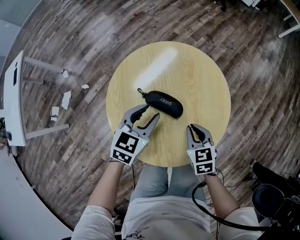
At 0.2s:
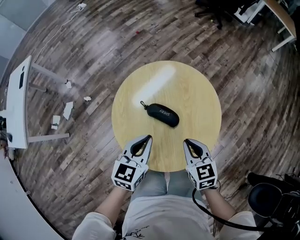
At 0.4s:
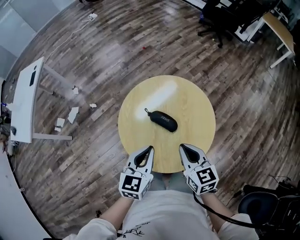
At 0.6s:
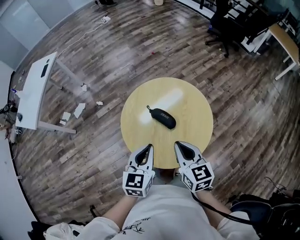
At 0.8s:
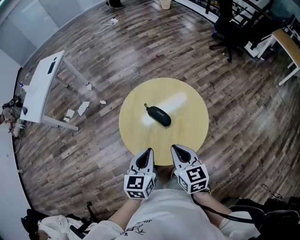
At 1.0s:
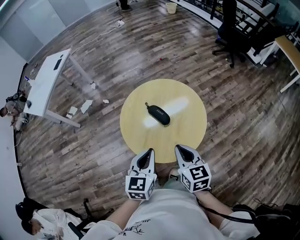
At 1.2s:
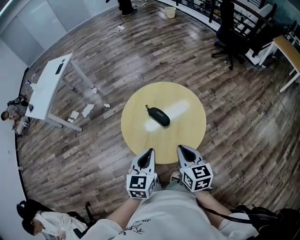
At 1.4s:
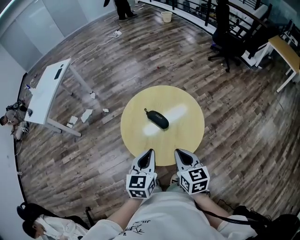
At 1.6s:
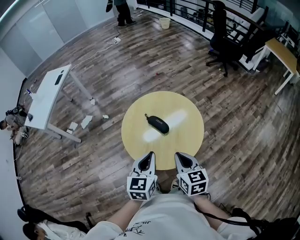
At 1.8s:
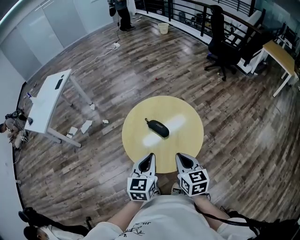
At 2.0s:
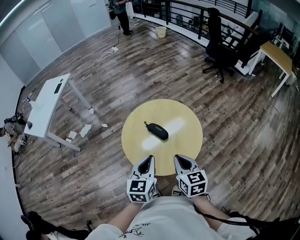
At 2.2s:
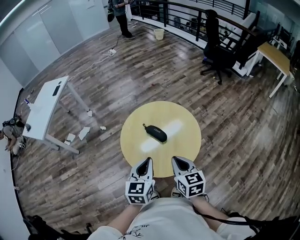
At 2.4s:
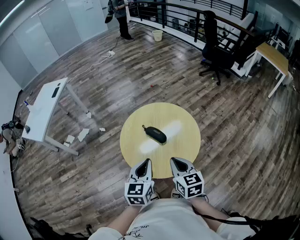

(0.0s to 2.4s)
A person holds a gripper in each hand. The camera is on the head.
0.0s - 1.2s: The left gripper moves about 30 cm, changes its angle by roughly 40 degrees, and closes up. Meanwhile the right gripper is displaced upward by some 25 cm, and turns by roughly 30 degrees.
1.2s - 2.4s: The grippers make only small movements.

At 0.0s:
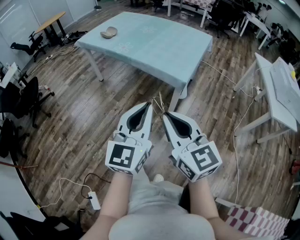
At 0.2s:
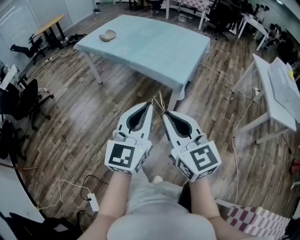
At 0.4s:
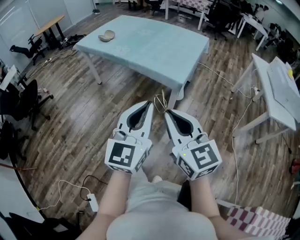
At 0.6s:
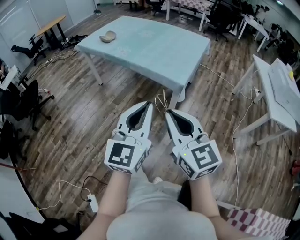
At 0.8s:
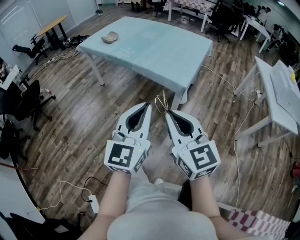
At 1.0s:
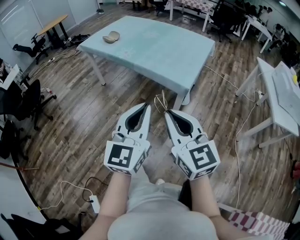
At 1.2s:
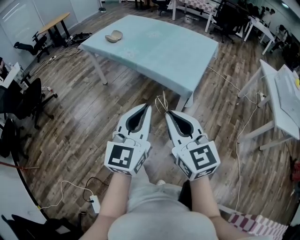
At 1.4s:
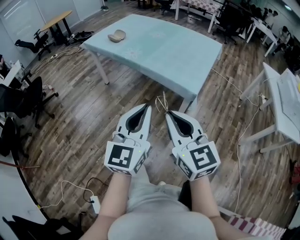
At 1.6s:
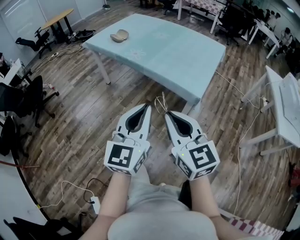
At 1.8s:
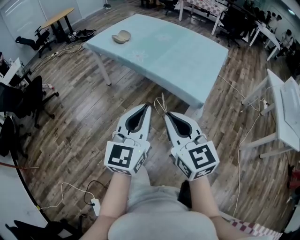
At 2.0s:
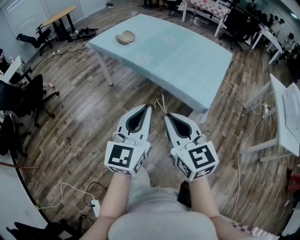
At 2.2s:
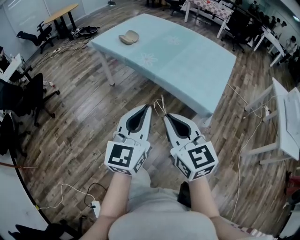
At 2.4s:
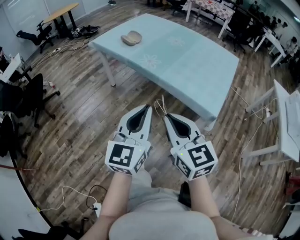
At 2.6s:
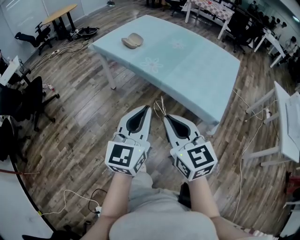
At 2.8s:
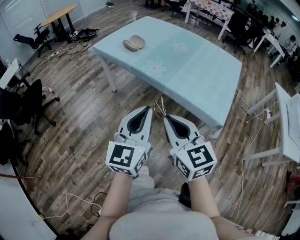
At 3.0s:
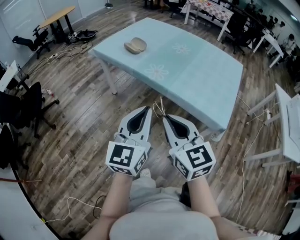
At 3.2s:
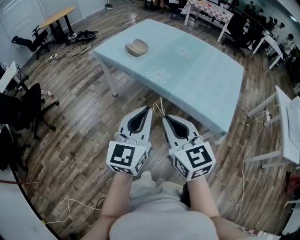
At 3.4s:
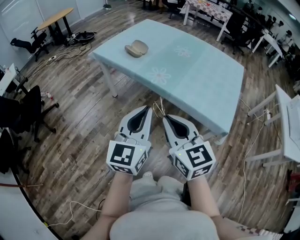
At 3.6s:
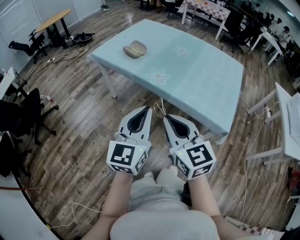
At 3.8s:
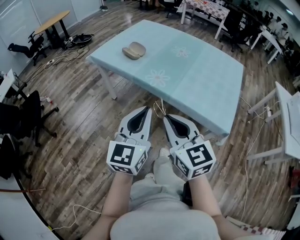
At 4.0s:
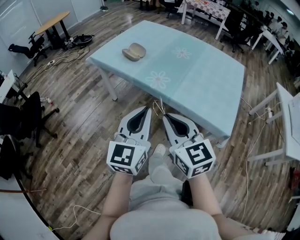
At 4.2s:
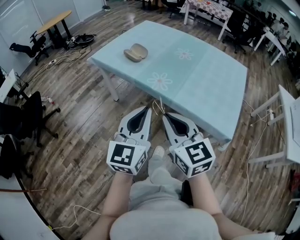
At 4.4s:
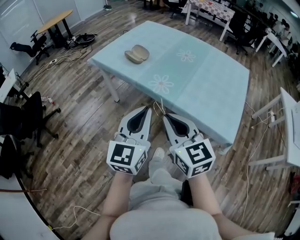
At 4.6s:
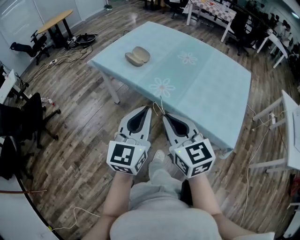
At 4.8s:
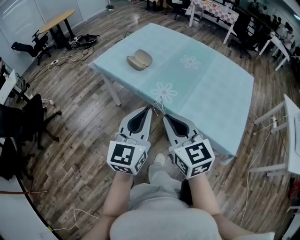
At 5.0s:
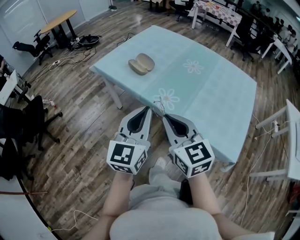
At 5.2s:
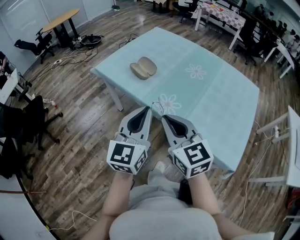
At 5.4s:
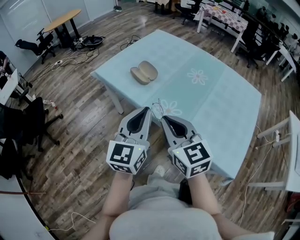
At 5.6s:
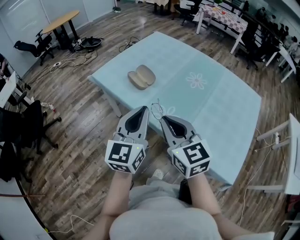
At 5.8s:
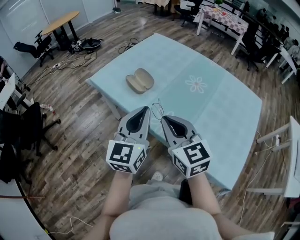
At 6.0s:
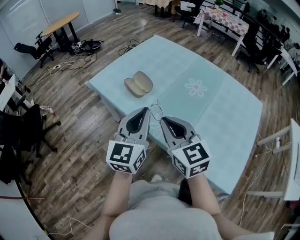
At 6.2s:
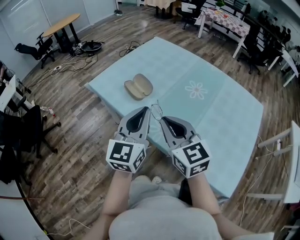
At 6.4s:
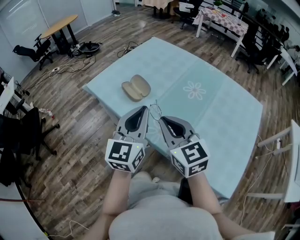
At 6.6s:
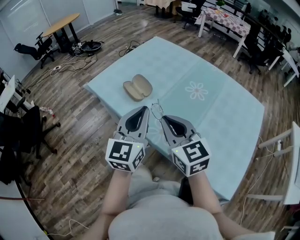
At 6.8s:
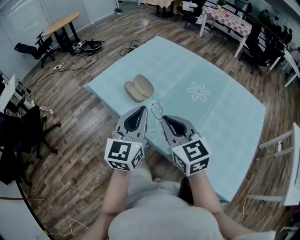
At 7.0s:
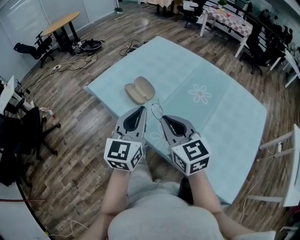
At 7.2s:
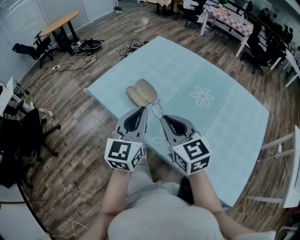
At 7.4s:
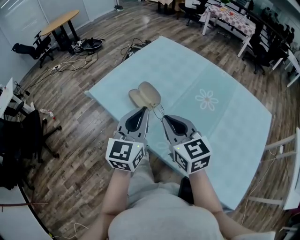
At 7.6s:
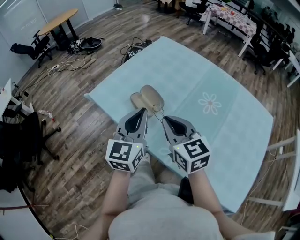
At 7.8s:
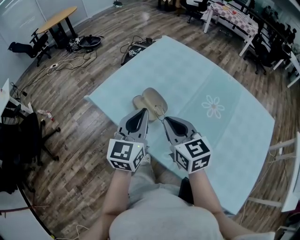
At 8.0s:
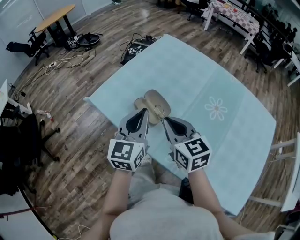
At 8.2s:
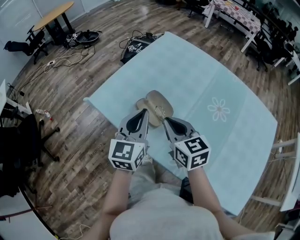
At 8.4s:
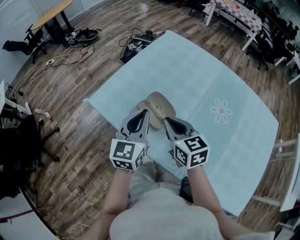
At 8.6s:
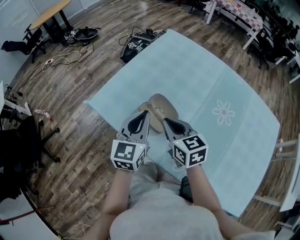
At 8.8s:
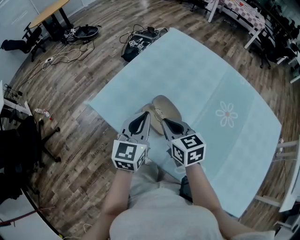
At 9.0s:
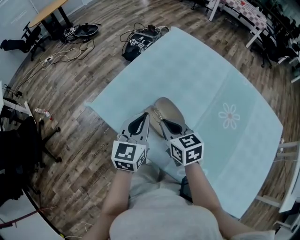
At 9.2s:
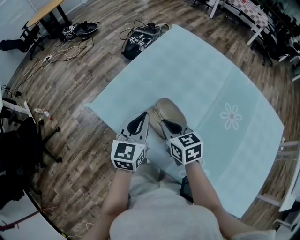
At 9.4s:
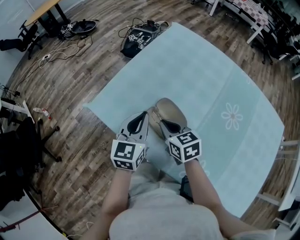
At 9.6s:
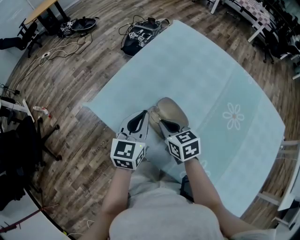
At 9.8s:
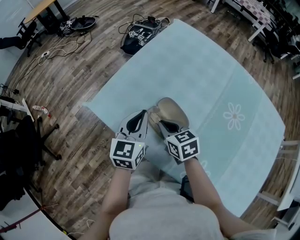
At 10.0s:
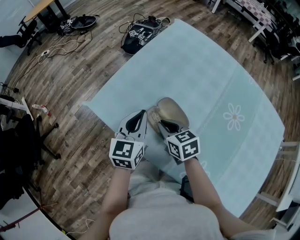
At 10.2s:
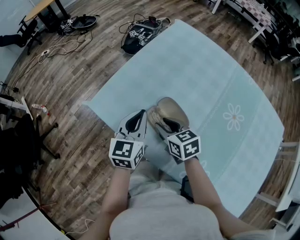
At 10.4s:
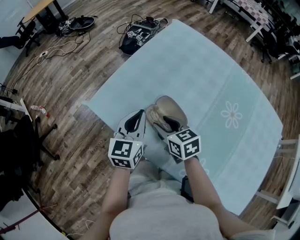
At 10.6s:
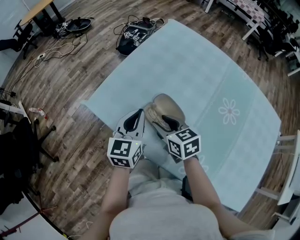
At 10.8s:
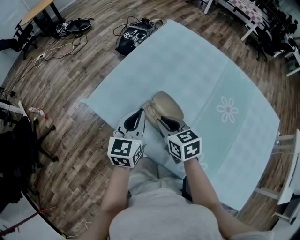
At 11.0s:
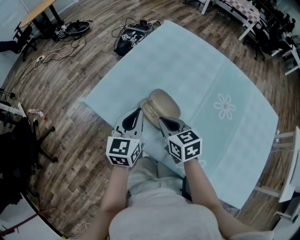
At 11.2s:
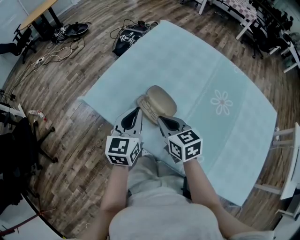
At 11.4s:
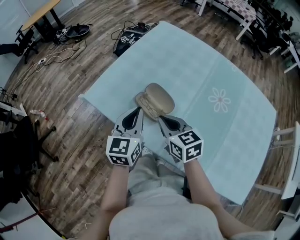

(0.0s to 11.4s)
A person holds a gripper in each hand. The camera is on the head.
0.0s - 1.4s: Both grippers move forward, roughly 5 cm.
1.4s - 2.8s: The two grippers go roughly 25 cm forward and to the left.
2.8s - 4.2s: The grippers both shift forward by about 10 cm.
4.2s - 5.6s: The grippers both shift forward by roughly 20 cm.
5.6s - 7.2s: The grippers both shift forward by roughly 15 cm.
7.2s - 8.6s: The right gripper is displaced forward and downward by about 20 cm, while the left gripper moves forward, downward and to the left, about 20 cm.
8.6s - 10.0s: The right gripper moves downward, roughly 10 cm. The left gripper shifts some 10 cm downward and forward.
10.0s - 11.4s: The left gripper goes about 10 cm backward; the right gripper shifts some 10 cm upward and backward, and opens and closes again.

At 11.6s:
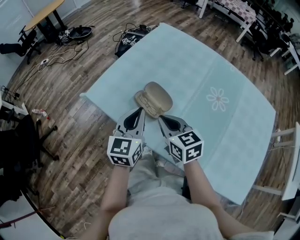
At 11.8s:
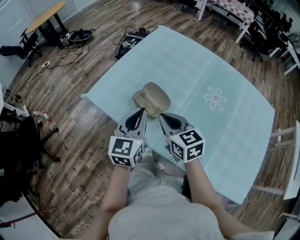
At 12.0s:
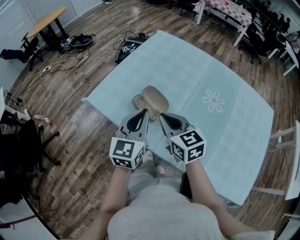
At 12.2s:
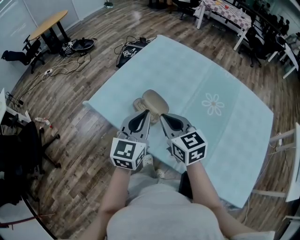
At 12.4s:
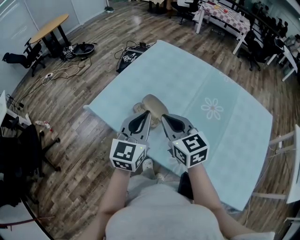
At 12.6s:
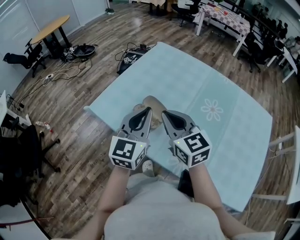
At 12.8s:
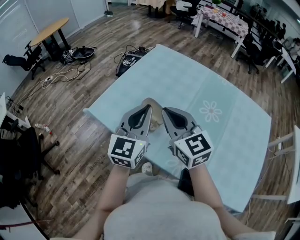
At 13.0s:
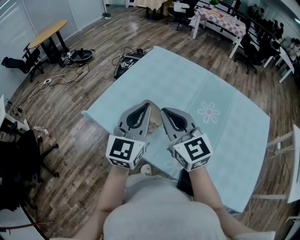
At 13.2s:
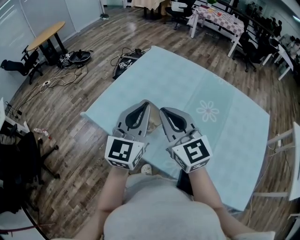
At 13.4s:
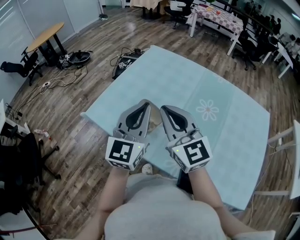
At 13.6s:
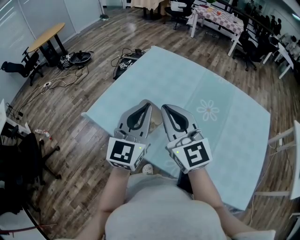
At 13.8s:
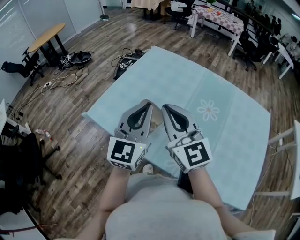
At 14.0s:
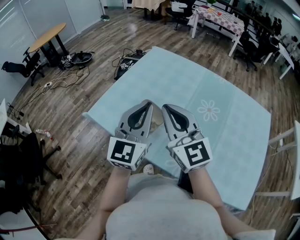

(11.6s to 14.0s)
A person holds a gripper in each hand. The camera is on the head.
11.6s - 12.8s: Both grippers move upward, approximately 10 cm. The right gripper turns by about 20 degrees.
12.8s - 14.0s: The grippers move only a little.

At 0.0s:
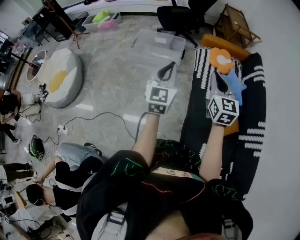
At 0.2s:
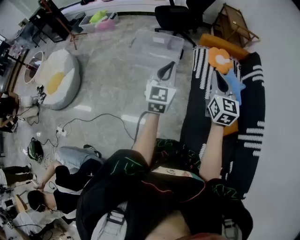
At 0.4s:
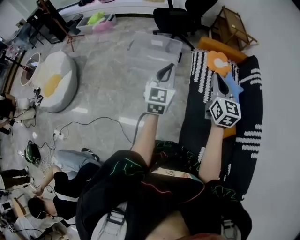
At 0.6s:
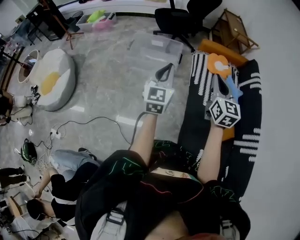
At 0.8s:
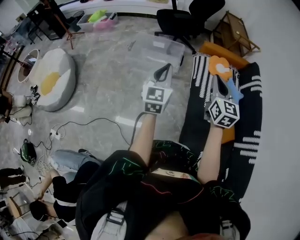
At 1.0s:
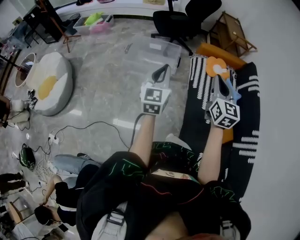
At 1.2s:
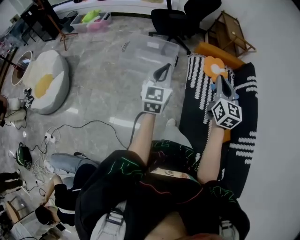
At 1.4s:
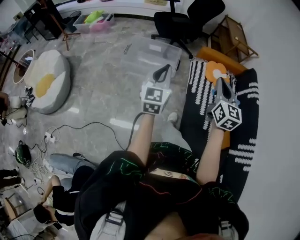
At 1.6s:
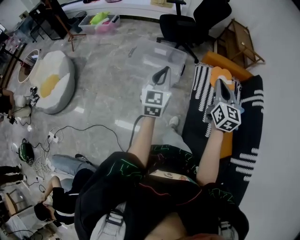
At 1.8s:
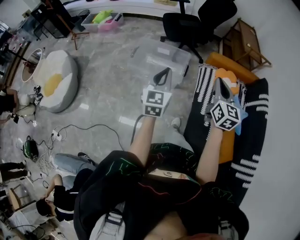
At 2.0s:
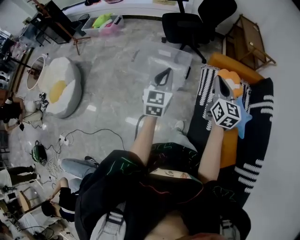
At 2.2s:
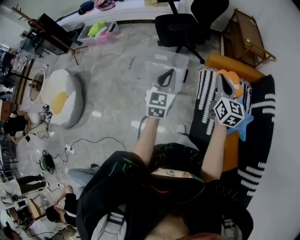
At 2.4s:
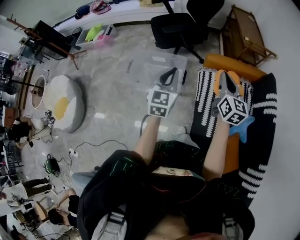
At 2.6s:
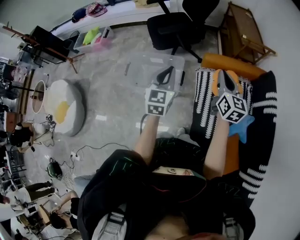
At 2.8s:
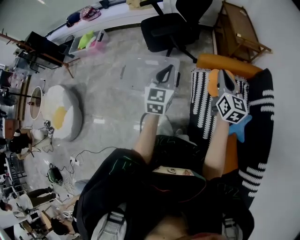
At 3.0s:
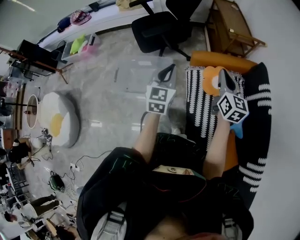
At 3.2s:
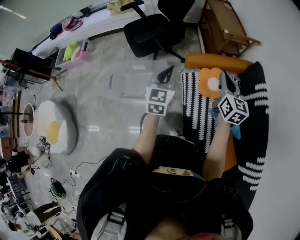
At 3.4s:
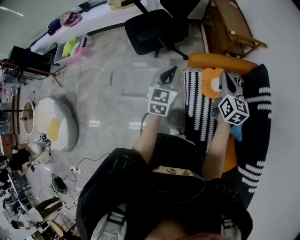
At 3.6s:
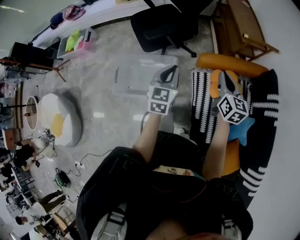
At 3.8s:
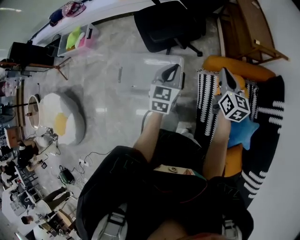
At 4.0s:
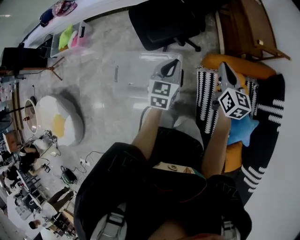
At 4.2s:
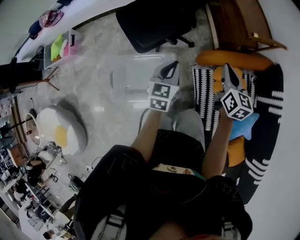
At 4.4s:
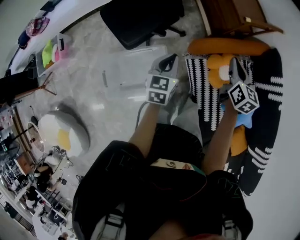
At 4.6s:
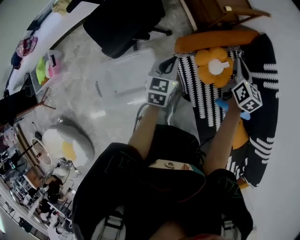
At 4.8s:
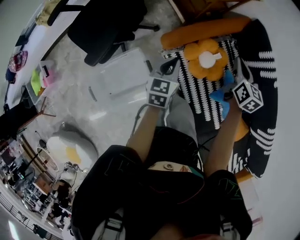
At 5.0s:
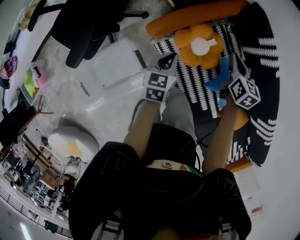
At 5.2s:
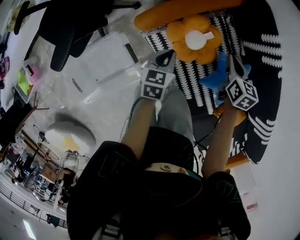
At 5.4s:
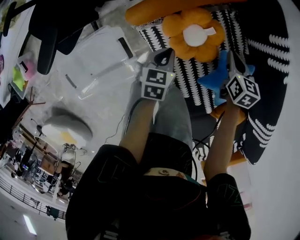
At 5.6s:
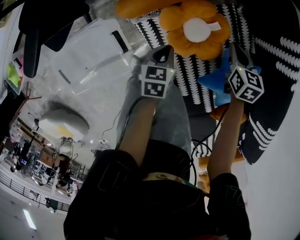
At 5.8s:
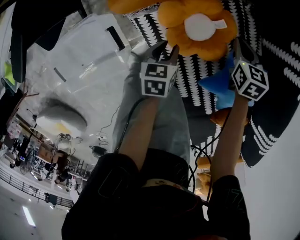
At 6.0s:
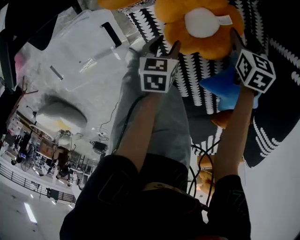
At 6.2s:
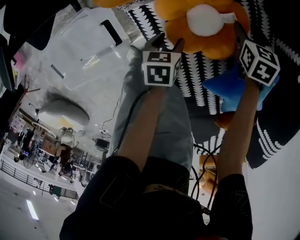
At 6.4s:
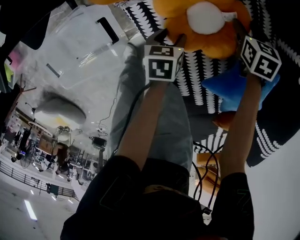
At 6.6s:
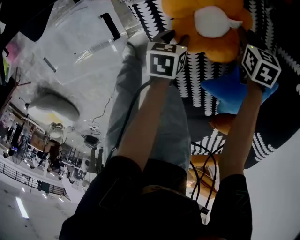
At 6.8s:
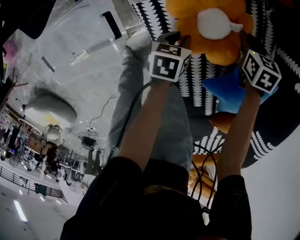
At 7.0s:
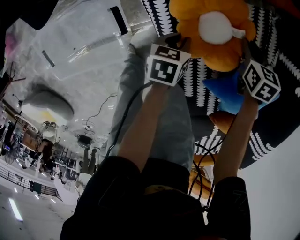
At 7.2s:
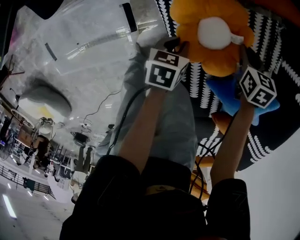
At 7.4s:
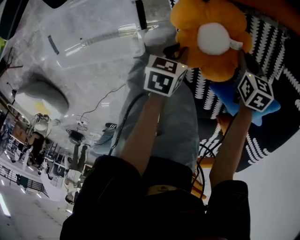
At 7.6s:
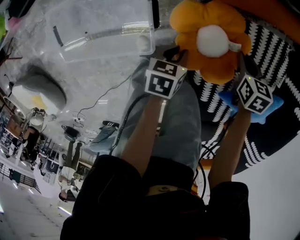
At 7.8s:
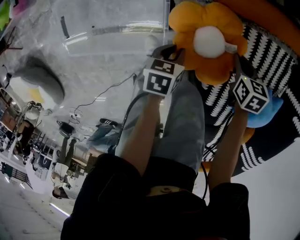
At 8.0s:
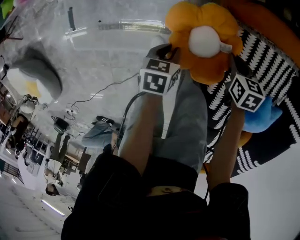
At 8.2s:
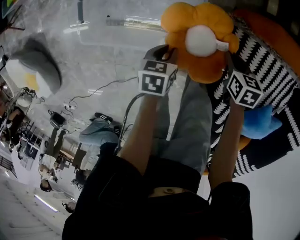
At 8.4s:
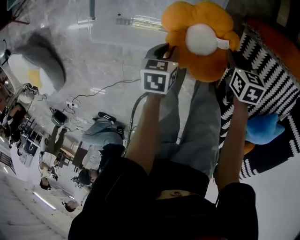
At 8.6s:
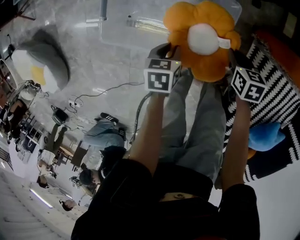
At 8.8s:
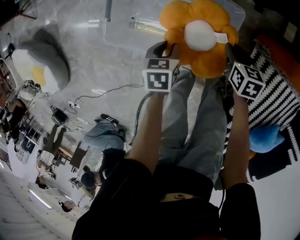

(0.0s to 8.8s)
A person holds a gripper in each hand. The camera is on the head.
0.0s - 1.4s: The right gripper heads forward, covering about 10 cm. The left gripper is displaced forward and to the left by approximately 15 cm.
1.4s - 3.0s: The grippers both shift forward and to the right by about 40 cm.
3.0s - 4.4s: Both grippers move forward, roughly 25 cm. The right gripper changes its angle by approximately 20 degrees. Meanwhile the left gripper changes its angle by roughly 30 degrees.
4.4s - 5.8s: Both grippers travel together downward and to the right, some 40 cm. The left gripper tips its fingers downward by approximately 30 degrees, and opens; the right gripper angles its fingers downward, by approximately 30 degrees.
5.8s - 7.4s: The left gripper is displaced to the left and backward by approximately 15 cm, while the right gripper shifts about 15 cm to the left, and opens, then closes again.
7.4s - 8.8s: Both grippers are carried roughly 50 cm. The left gripper turns by roughly 30 degrees; the right gripper rotates some 20 degrees.
